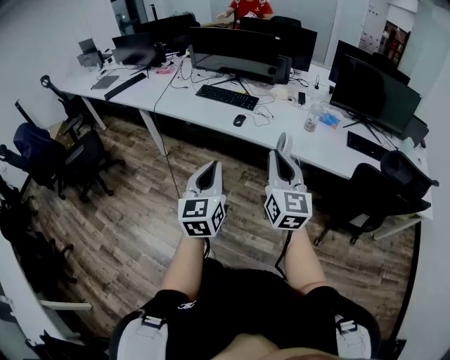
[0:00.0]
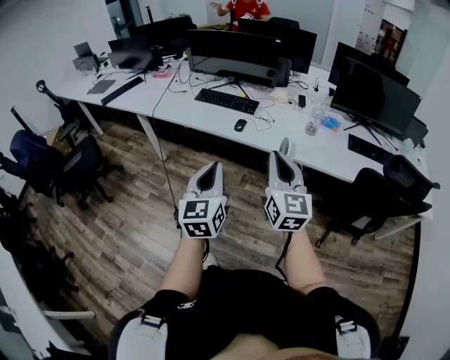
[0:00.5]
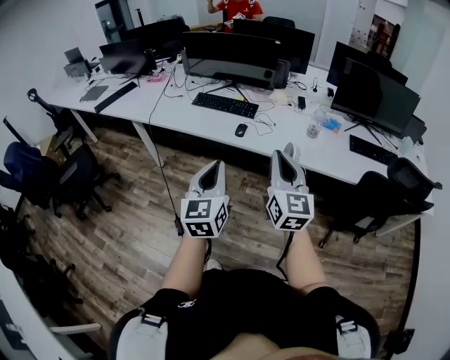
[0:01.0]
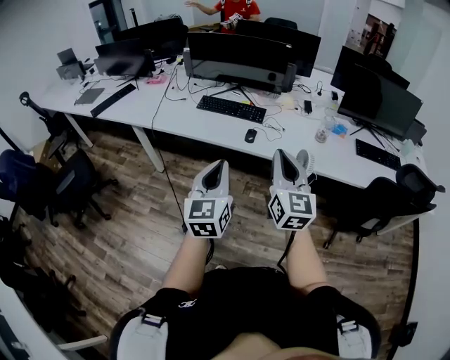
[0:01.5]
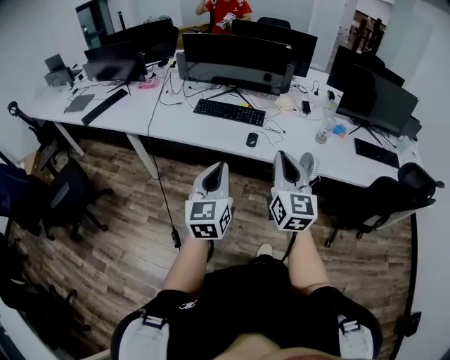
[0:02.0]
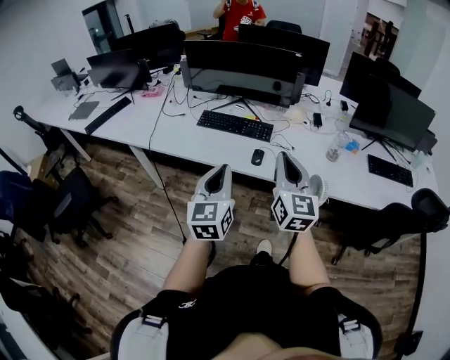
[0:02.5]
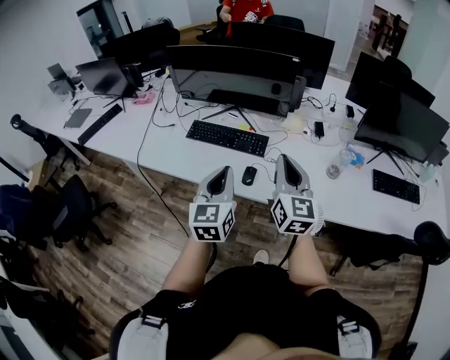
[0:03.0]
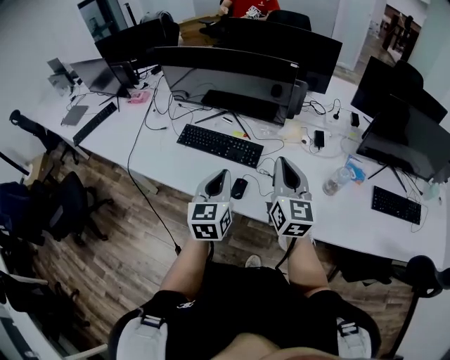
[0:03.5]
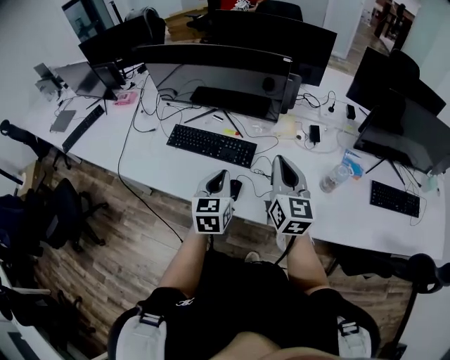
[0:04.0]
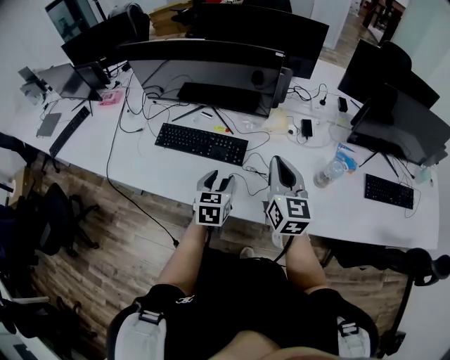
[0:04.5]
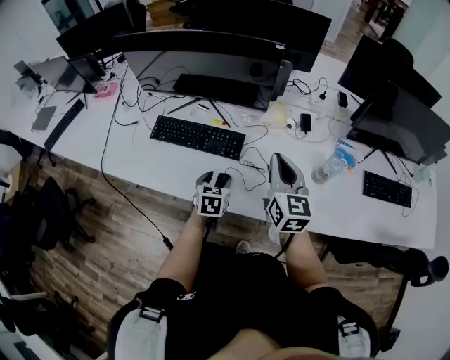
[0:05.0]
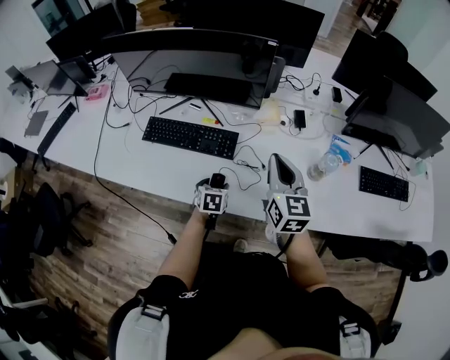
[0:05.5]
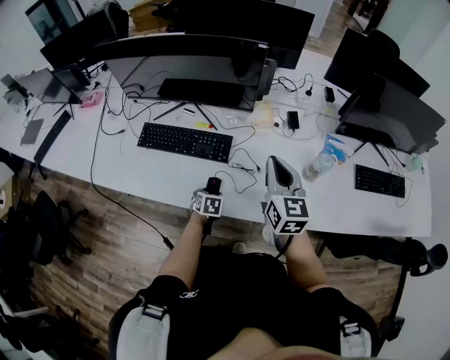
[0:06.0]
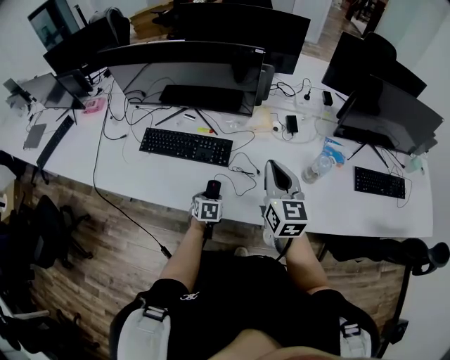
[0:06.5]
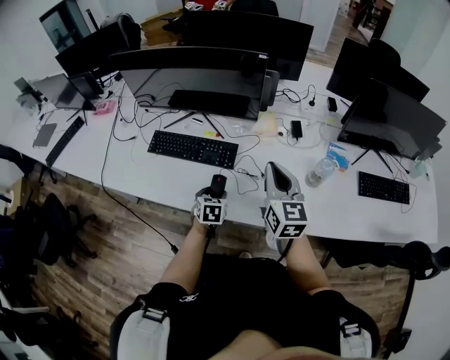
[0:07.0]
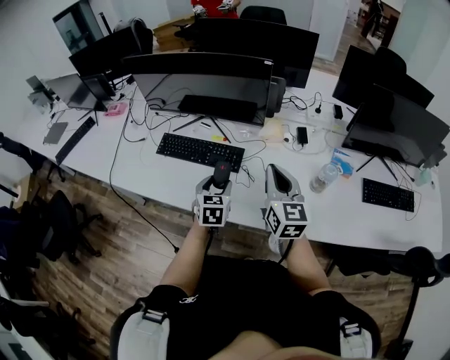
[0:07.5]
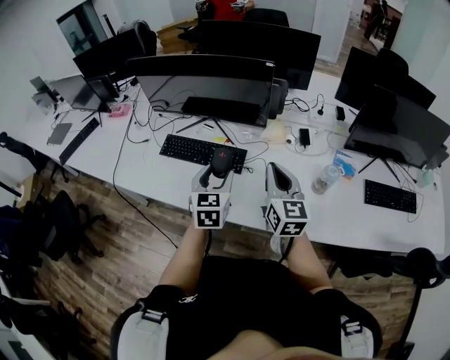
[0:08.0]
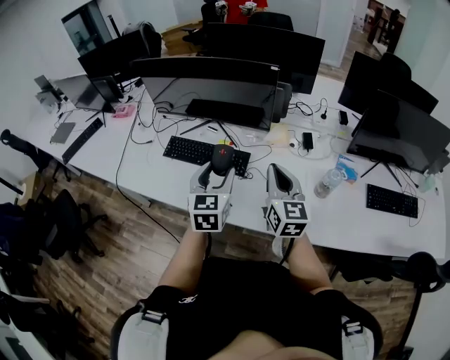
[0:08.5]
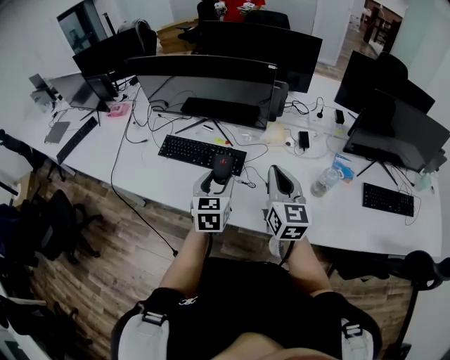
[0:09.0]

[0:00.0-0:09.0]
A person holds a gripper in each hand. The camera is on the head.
0:00.0 to 0:02.0: The right gripper is displaced to the left and forward by roughly 20 cm. The left gripper shifts approximately 25 cm forward and to the left.
0:02.0 to 0:04.5: The pair of grippers is taken forward, roughly 40 cm. The left gripper is displaced downward by about 20 cm, changes its angle by some 30 degrees, and opens up.
0:04.5 to 0:07.0: The left gripper shifts approximately 10 cm downward.
0:07.0 to 0:09.0: The left gripper heads upward, covering approximately 15 cm, and changes its angle by approximately 20 degrees.

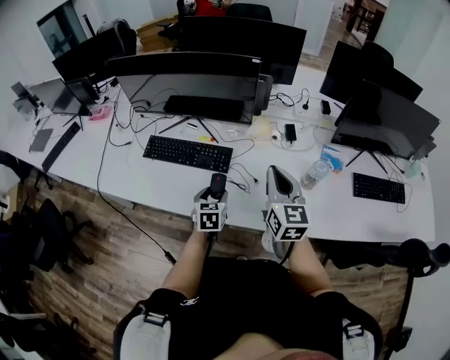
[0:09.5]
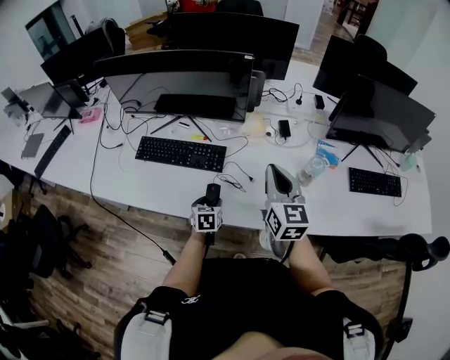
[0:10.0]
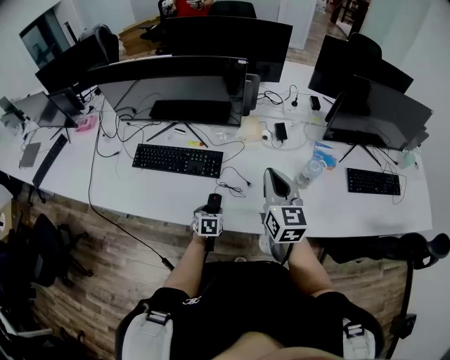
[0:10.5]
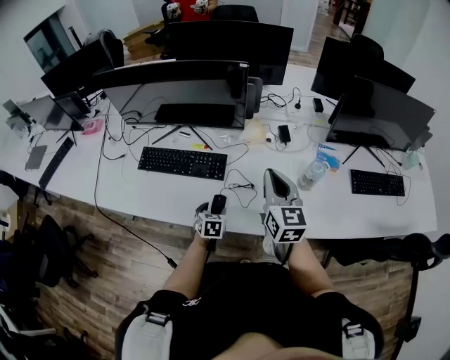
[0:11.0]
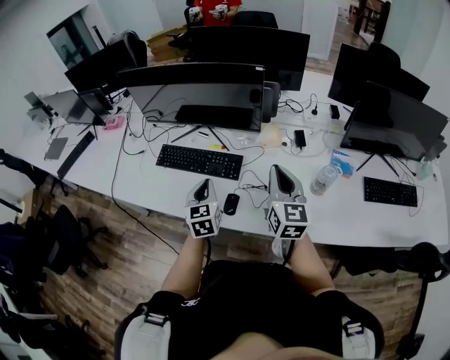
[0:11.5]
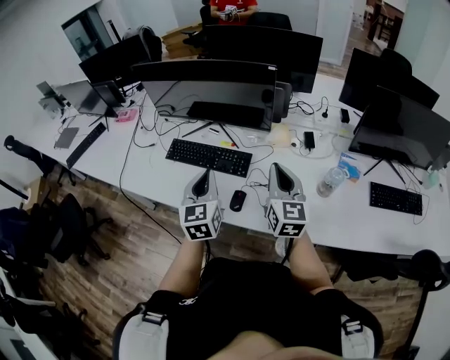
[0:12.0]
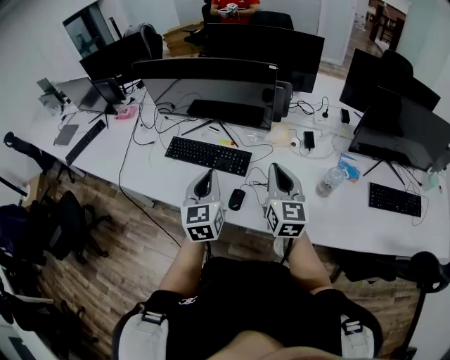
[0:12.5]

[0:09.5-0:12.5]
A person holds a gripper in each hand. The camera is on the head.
0:09.5 to 0:11.0: The left gripper moves downward, some 10 cm.
0:11.0 to 0:12.5: The left gripper heads upward, covering some 30 cm, tips its fingers upward by approximately 40 degrees, and closes.

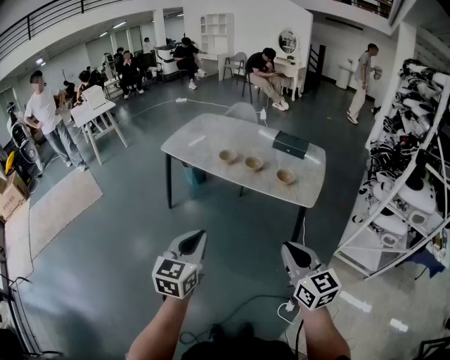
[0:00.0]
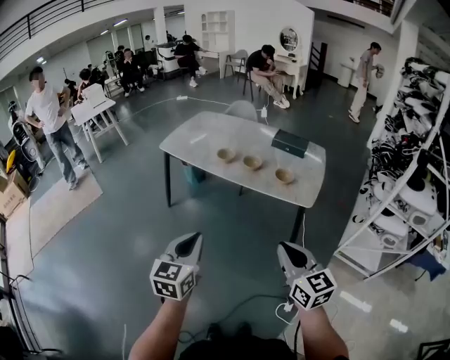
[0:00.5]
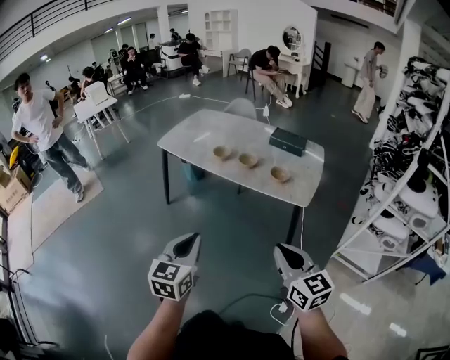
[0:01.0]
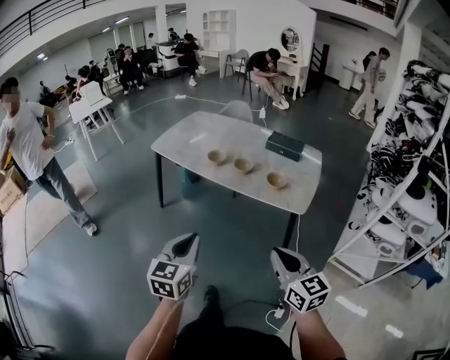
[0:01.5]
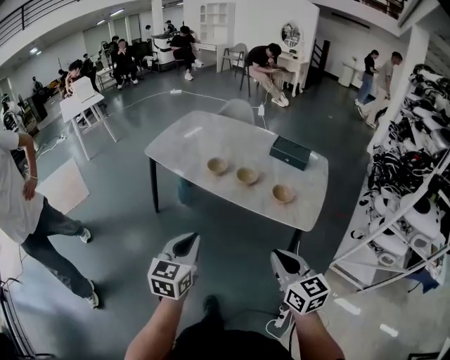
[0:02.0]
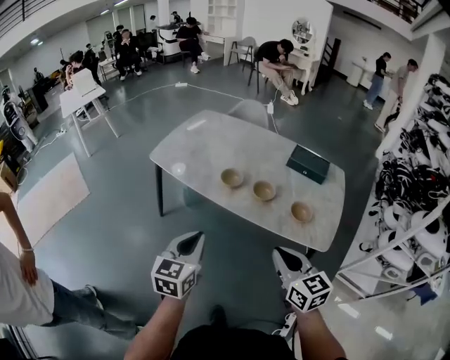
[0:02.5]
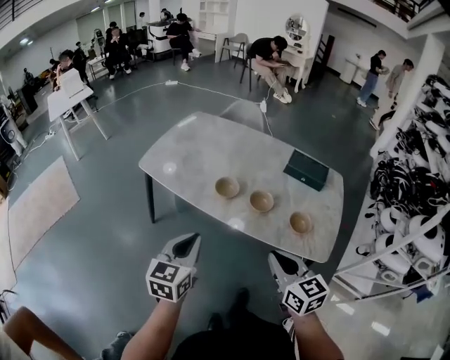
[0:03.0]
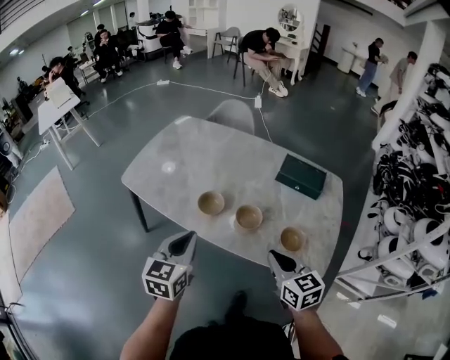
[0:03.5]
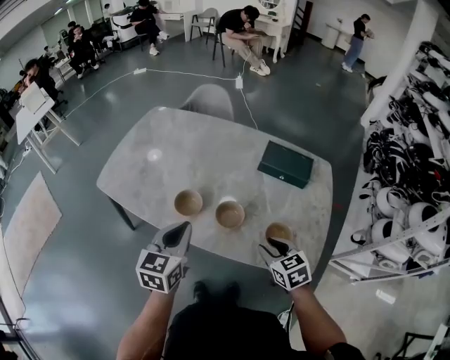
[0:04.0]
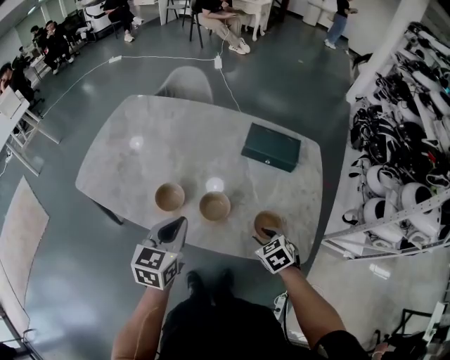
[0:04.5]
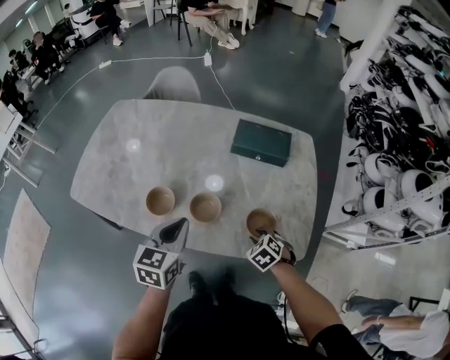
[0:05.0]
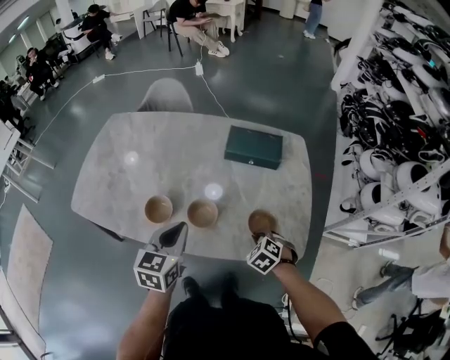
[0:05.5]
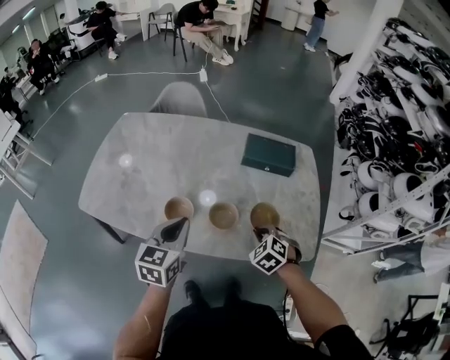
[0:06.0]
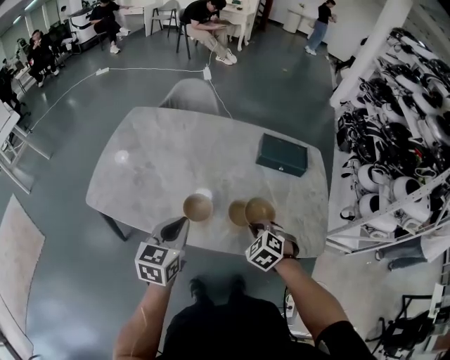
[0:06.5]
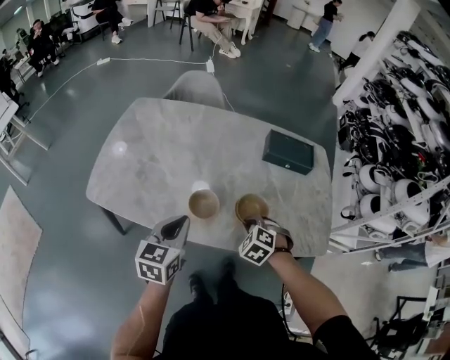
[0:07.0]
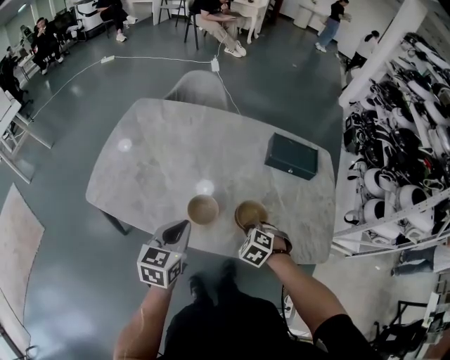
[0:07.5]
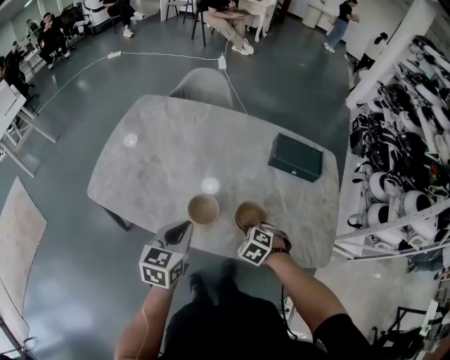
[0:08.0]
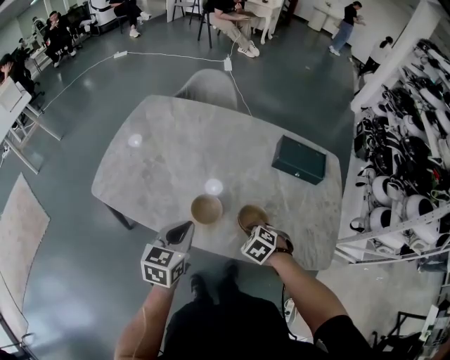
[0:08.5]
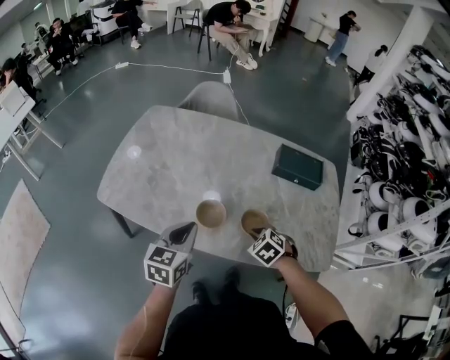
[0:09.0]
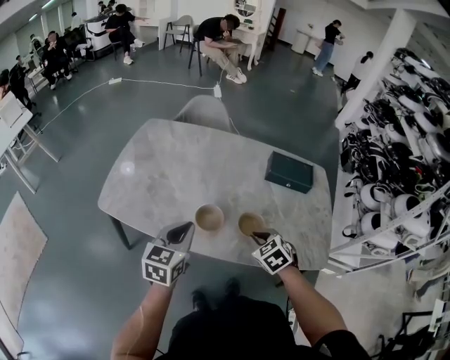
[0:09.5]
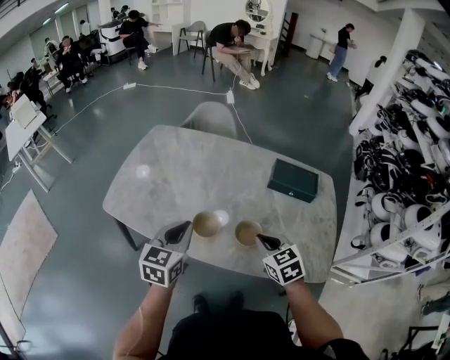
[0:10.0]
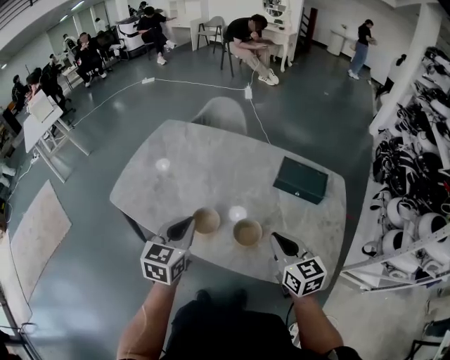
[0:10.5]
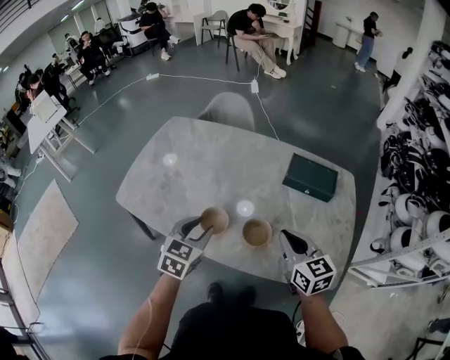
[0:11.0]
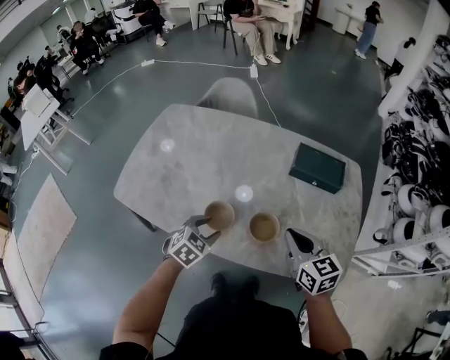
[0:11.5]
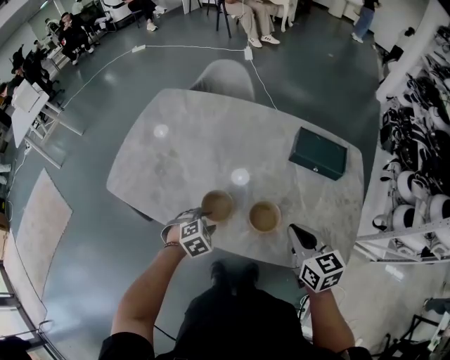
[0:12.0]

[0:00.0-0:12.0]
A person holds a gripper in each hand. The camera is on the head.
0:00.0 to 0:02.0: The two grippers go approximately 20 cm forward.
0:02.0 to 0:04.0: The pair of grippers is taken forward, roughly 40 cm. The right gripper changes its angle by about 30 degrees, and opens its fingers.
0:04.0 to 0:06.0: The grippers both shift forward by roughly 5 cm. The left gripper moves some 10 cm to the right and comes back, while the right gripper goes downward and returns, approximately 15 cm each way, changes its angle by approximately 30 degrees, and closes its fingers.
0:06.0 to 0:08.0: The two grippers go some 15 cm to the left and downward.
0:08.0 to 0:10.0: The right gripper goes about 15 cm upward, and tips its fingers upward by approximately 30 degrees. The left gripper moves upward, roughly 10 cm.
0:10.0 to 0:12.0: The right gripper travels to the right by approximately 5 cm, and rotates some 20 degrees; the left gripper heads downward, covering some 25 cm, tilts its fingers about 40 degrees downward, and opens.

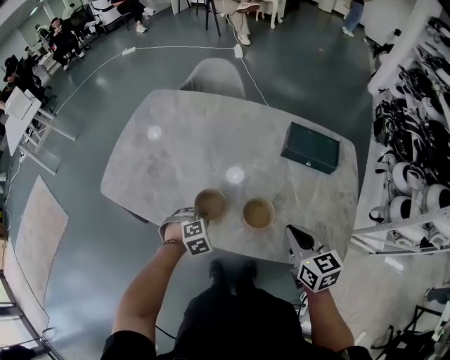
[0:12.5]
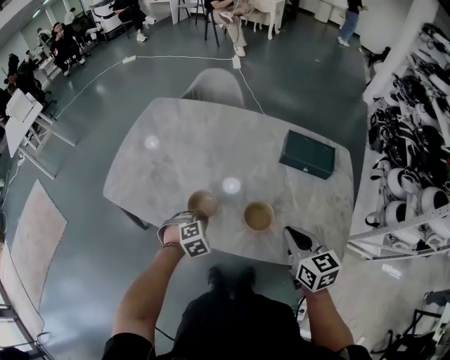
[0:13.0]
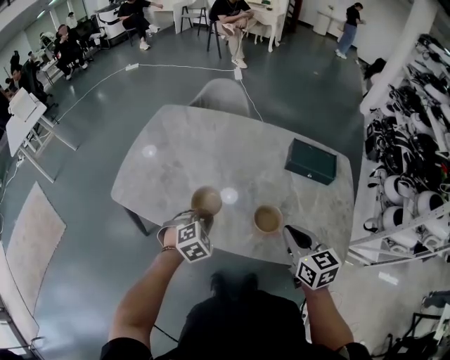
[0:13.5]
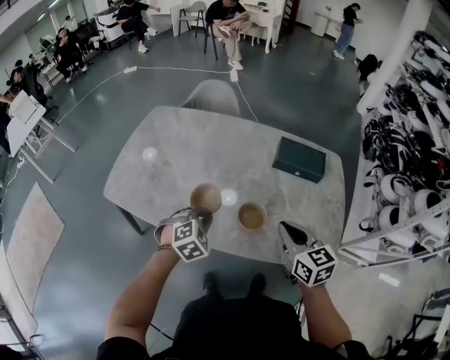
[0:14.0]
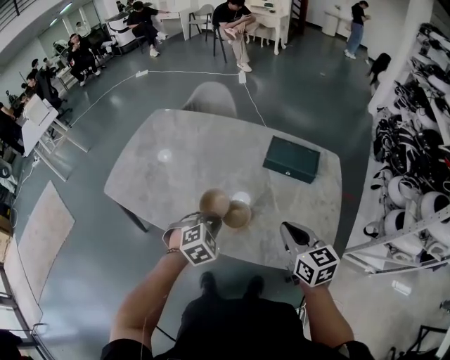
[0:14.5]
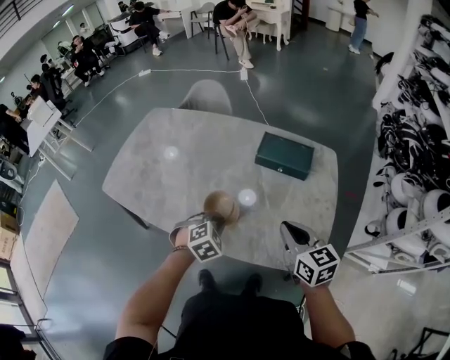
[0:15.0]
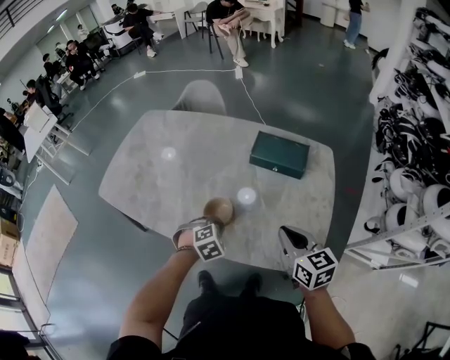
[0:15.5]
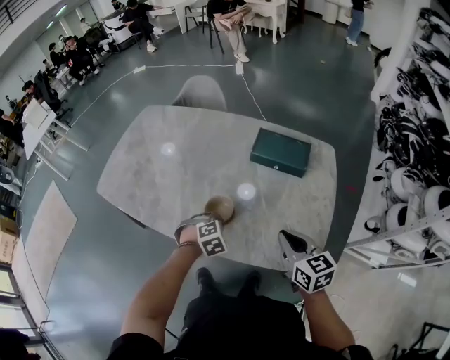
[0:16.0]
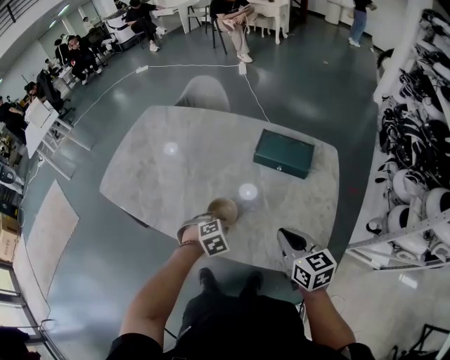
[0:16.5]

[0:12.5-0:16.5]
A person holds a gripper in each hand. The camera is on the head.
0:12.5 to 0:14.5: The left gripper moves to the right and upward, roughly 20 cm. Meanwhile the right gripper goes approximately 10 cm to the right.
0:14.5 to 0:16.5: The right gripper heads to the right, covering about 5 cm. The left gripper moves downward and to the right, approximately 15 cm, and opens its fingers.
